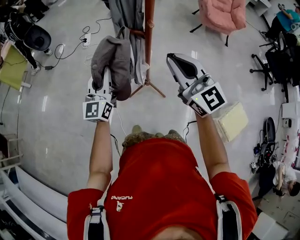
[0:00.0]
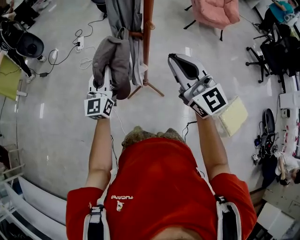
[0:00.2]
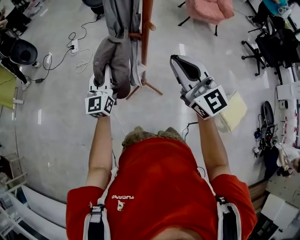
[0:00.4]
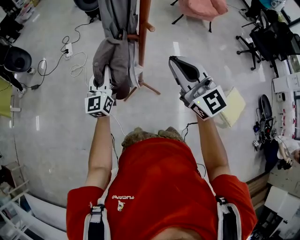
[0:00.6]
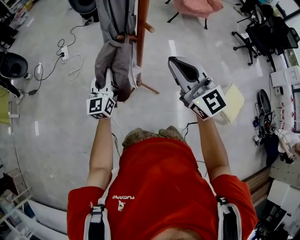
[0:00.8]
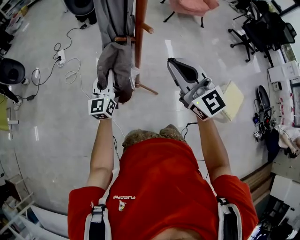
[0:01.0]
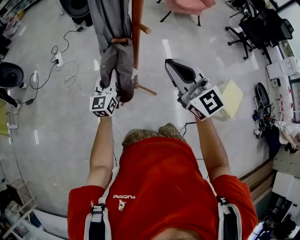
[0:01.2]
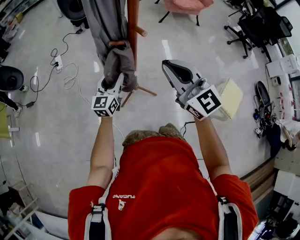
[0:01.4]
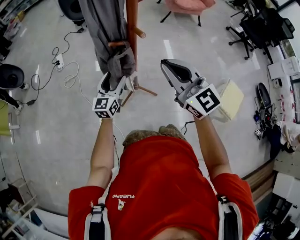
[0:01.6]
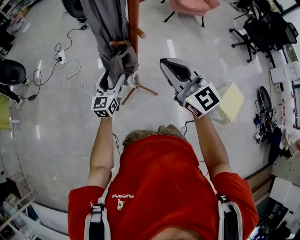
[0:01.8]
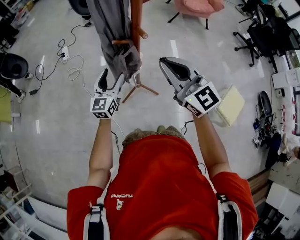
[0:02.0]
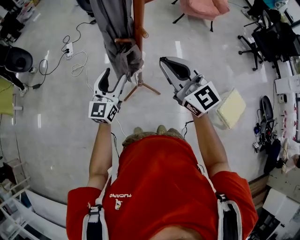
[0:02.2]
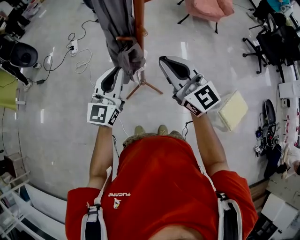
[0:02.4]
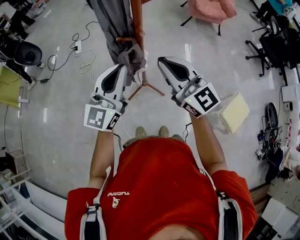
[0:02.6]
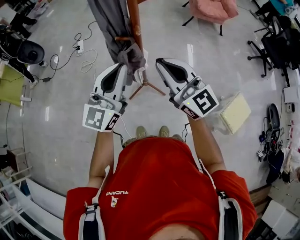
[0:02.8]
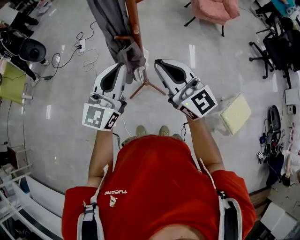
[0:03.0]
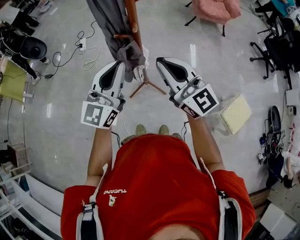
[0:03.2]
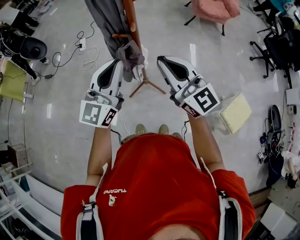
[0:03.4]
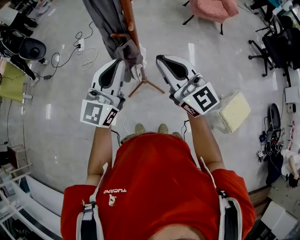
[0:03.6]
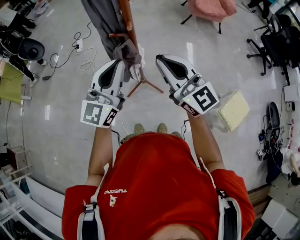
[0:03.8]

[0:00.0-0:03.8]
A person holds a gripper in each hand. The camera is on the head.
0:00.0 to 0:01.2: The right gripper ends up some 5 cm from where it was; the left gripper is displaced downward, forward and to the right by roughly 20 cm, and swivels approximately 20 degrees.
0:01.2 to 0:02.6: The left gripper is displaced upward and backward by roughly 25 cm, and opens, then closes once more.
0:02.6 to 0:03.8: The grippers stay close to where they were, moving slightly.

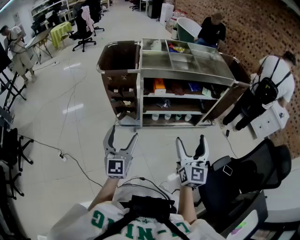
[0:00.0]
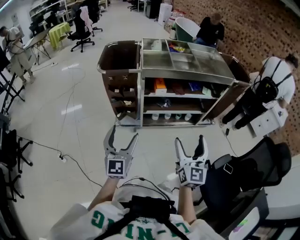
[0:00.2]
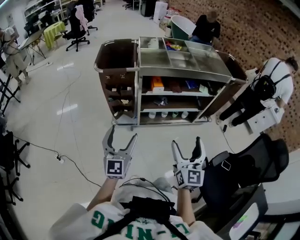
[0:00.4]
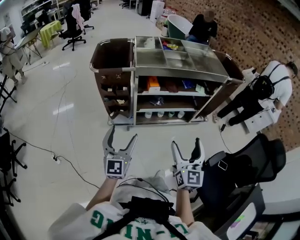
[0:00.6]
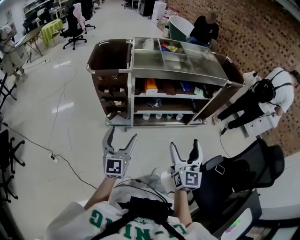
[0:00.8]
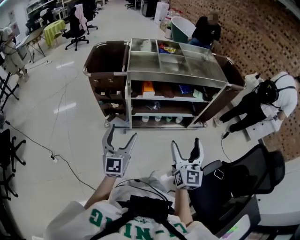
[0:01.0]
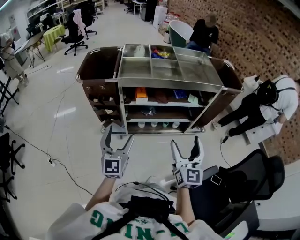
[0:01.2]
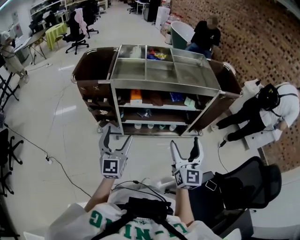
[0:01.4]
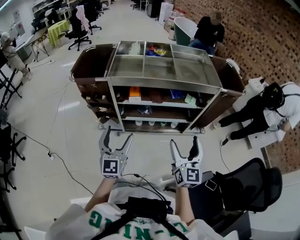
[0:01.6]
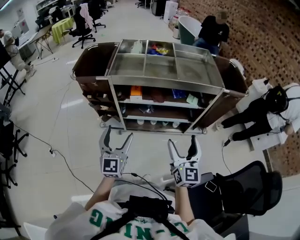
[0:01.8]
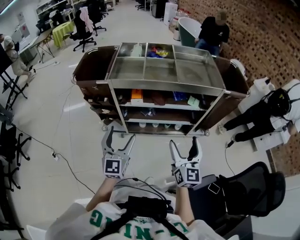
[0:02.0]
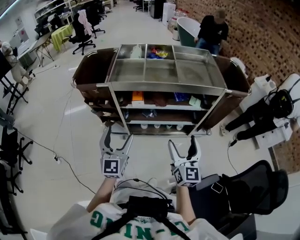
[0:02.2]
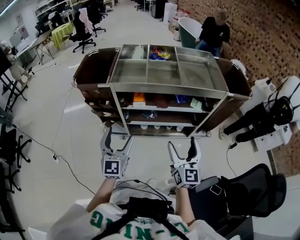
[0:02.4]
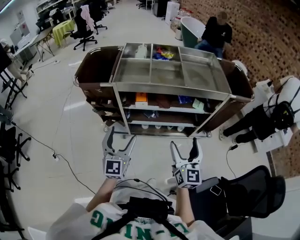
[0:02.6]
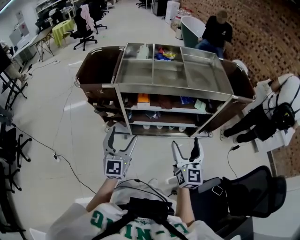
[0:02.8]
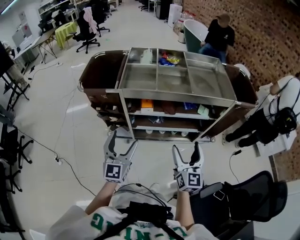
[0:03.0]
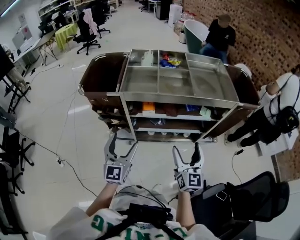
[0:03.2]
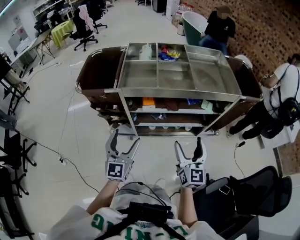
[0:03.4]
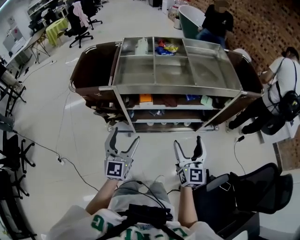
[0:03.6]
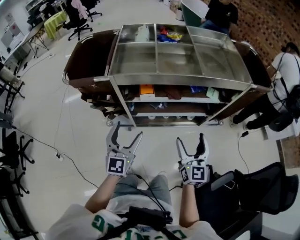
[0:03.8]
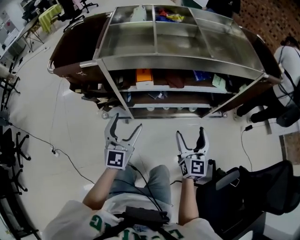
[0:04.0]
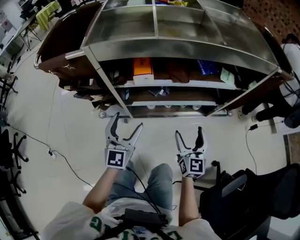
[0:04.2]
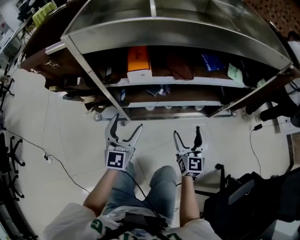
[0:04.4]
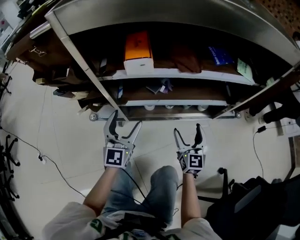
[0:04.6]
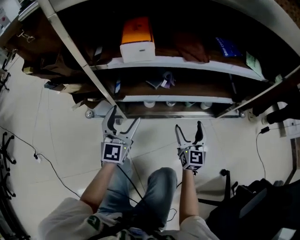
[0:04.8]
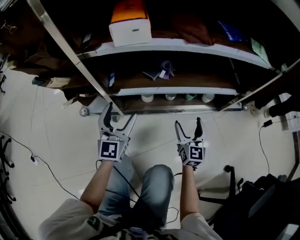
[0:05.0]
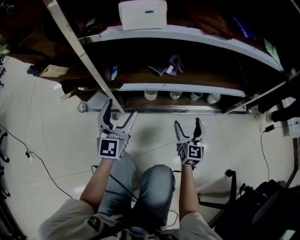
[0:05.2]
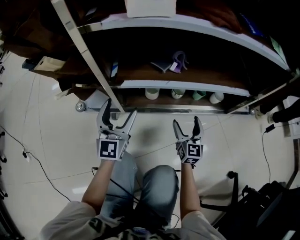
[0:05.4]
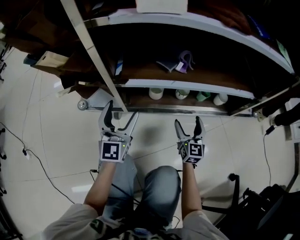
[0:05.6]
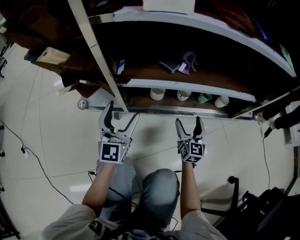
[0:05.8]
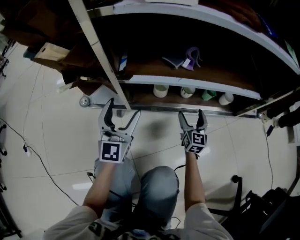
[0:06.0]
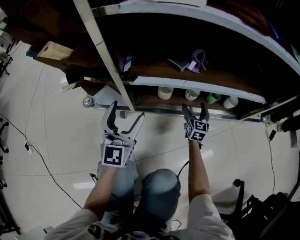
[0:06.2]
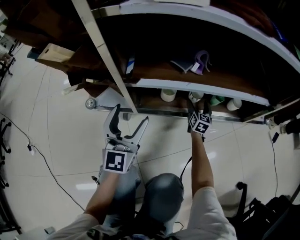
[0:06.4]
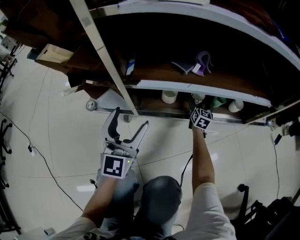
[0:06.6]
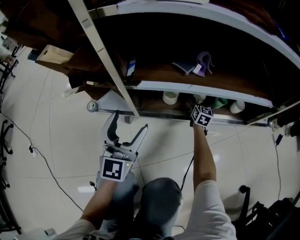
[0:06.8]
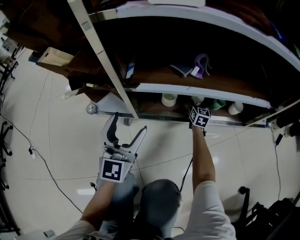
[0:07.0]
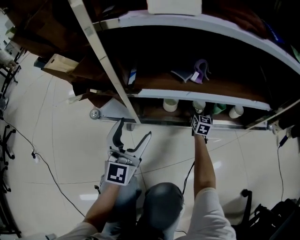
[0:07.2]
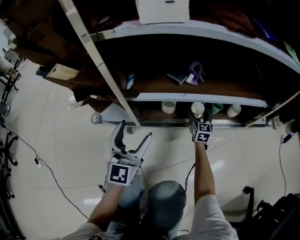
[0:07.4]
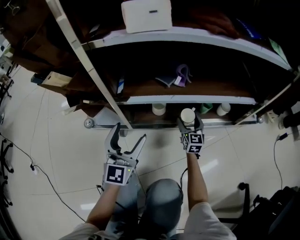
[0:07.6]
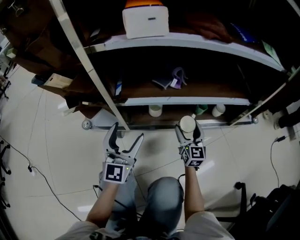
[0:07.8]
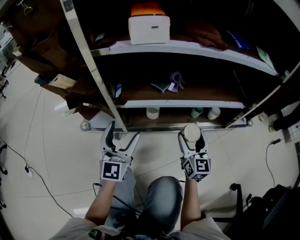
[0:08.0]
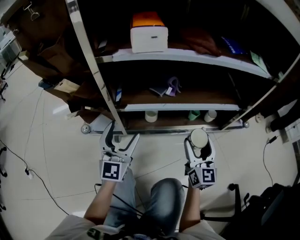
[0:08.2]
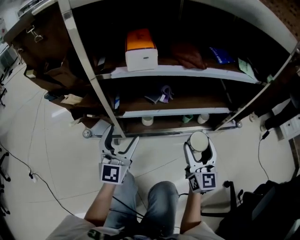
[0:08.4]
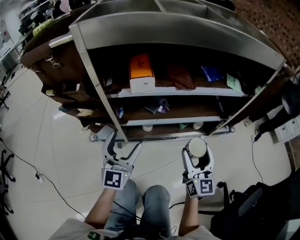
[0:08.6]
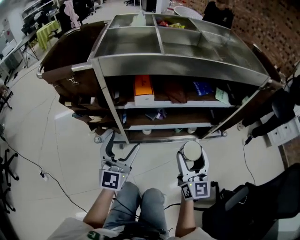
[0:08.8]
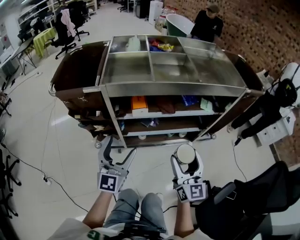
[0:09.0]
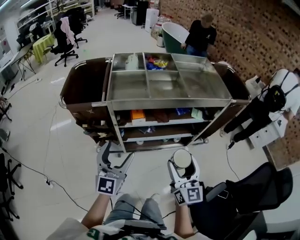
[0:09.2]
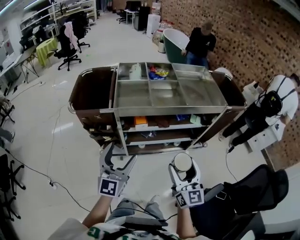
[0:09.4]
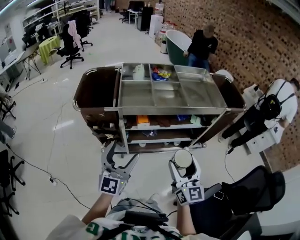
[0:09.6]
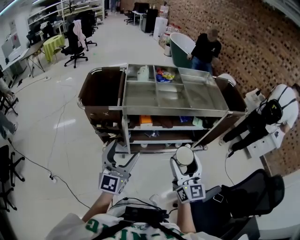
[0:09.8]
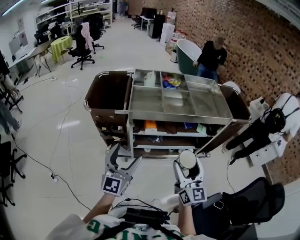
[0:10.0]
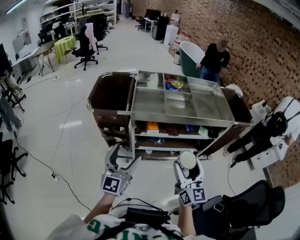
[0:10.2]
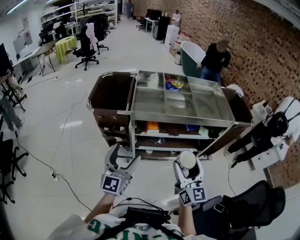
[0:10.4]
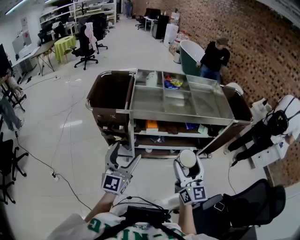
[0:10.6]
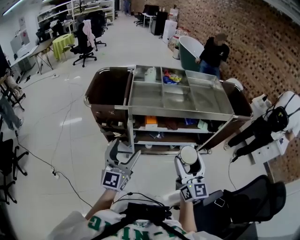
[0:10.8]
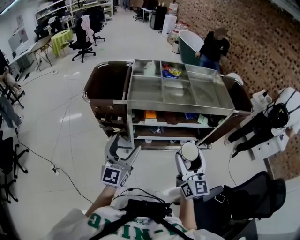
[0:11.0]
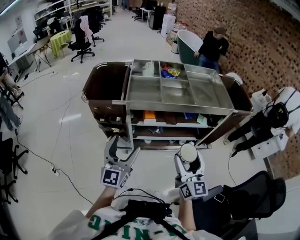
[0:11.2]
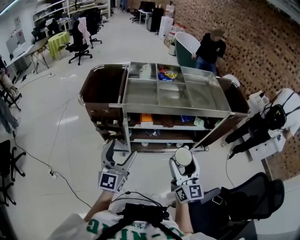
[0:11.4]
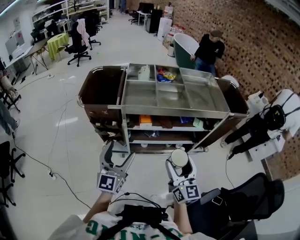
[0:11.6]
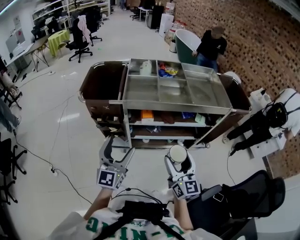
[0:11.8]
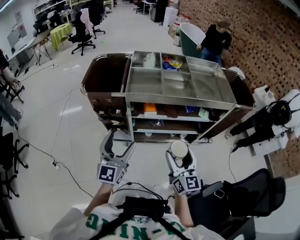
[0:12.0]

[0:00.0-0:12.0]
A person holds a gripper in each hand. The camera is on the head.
0:00.0 to 0:01.6: Both grippers travel together to the right and forward, roughly 20 cm.
0:01.6 to 0:03.0: The left gripper travels forward by about 5 cm; the right gripper shifts some 10 cm forward and to the left.
0:03.0 to 0:04.4: The left gripper moves downward and forward, some 40 cm. Meanwhile the right gripper goes some 40 cm downward.
0:04.4 to 0:06.0: Both grippers travel together downward, about 35 cm.
0:06.0 to 0:07.6: The right gripper travels forward and back again, approximately 15 cm each way.
0:07.6 to 0:09.0: The left gripper goes roughly 50 cm upward, while the right gripper is displaced upward and backward by about 70 cm.
0:09.0 to 0:10.4: The right gripper heads upward, covering some 20 cm, while the left gripper moves upward and backward, approximately 20 cm.
0:10.4 to 0:12.0: The right gripper moves downward, approximately 5 cm.

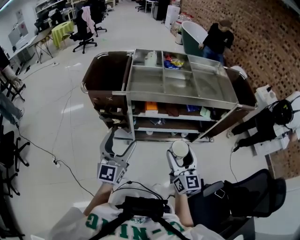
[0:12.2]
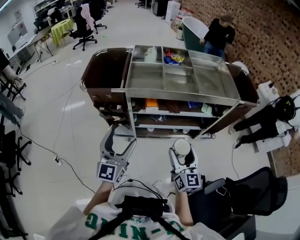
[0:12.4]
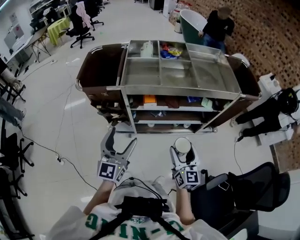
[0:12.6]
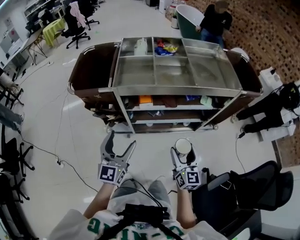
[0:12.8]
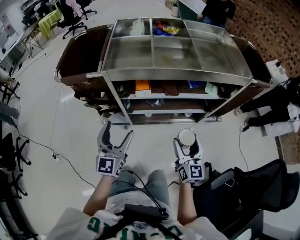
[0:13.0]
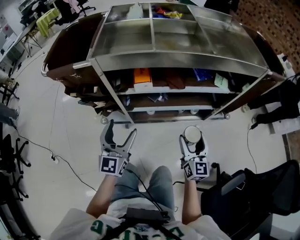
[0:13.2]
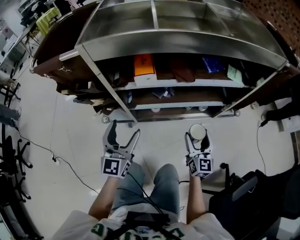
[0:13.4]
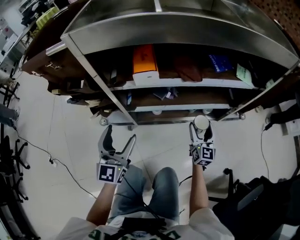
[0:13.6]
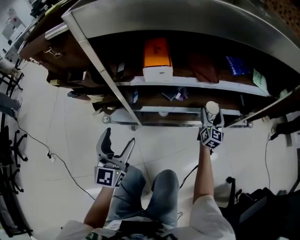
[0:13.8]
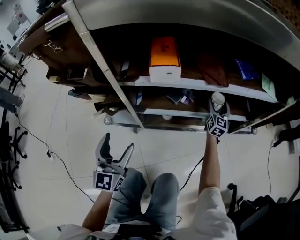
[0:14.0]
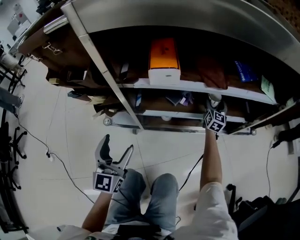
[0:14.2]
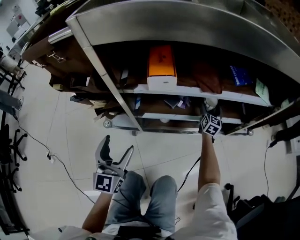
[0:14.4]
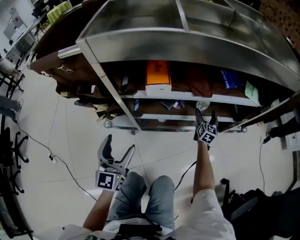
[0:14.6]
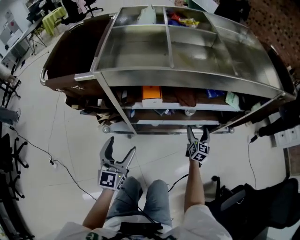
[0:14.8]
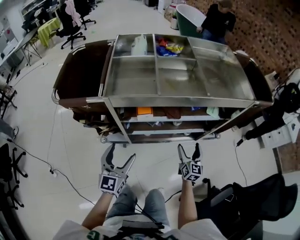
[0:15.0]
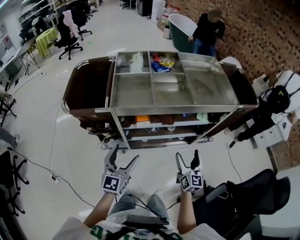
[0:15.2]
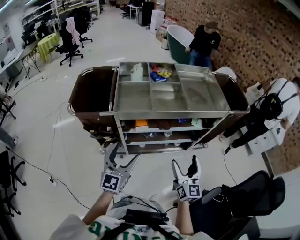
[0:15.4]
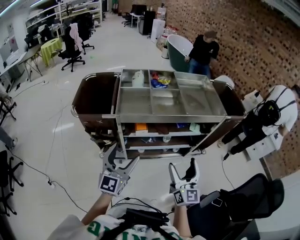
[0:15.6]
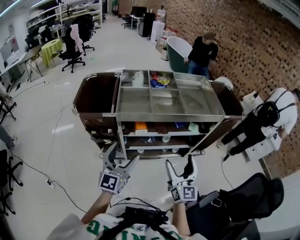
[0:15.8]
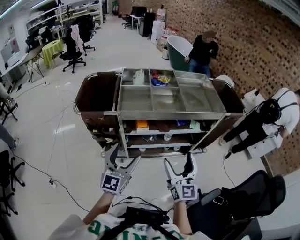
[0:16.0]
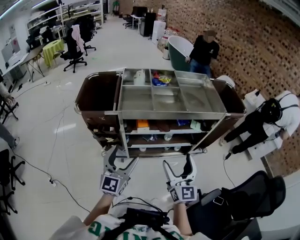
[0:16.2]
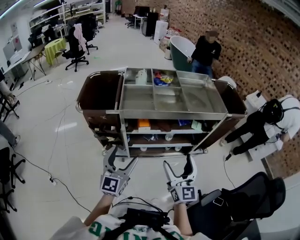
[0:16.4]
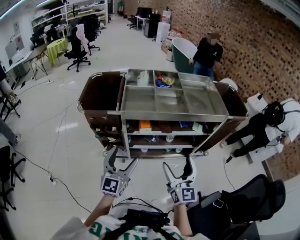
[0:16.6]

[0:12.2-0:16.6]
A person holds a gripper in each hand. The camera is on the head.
0:12.2 to 0:13.6: The left gripper moves downward, roughly 40 cm; the right gripper is displaced downward and forward by about 50 cm.
0:13.6 to 0:15.2: Both grippers travel together upward, about 30 cm.
0:15.2 to 0:16.6: The right gripper is displaced upward, backward and to the left by roughly 25 cm; the left gripper moves upward and backward, about 15 cm.

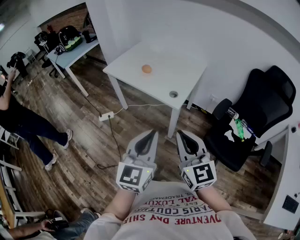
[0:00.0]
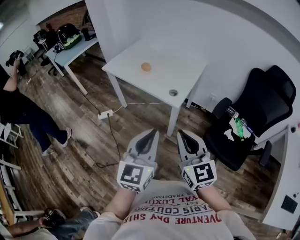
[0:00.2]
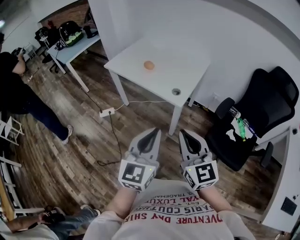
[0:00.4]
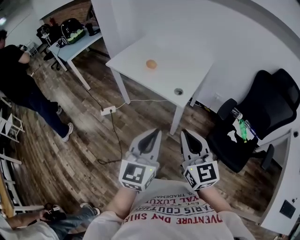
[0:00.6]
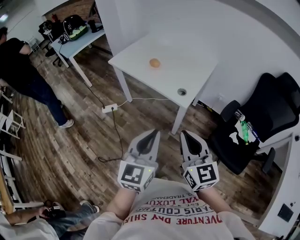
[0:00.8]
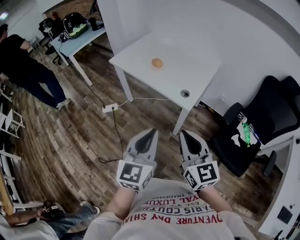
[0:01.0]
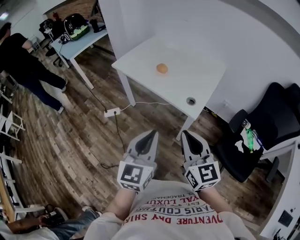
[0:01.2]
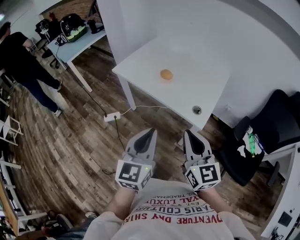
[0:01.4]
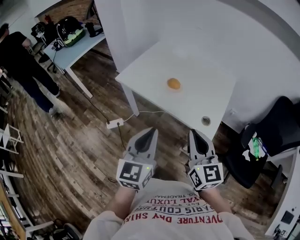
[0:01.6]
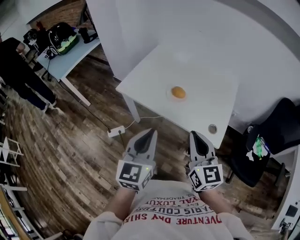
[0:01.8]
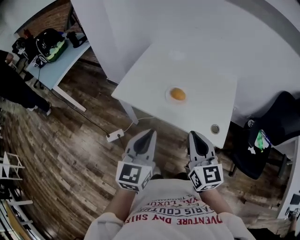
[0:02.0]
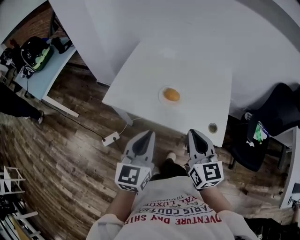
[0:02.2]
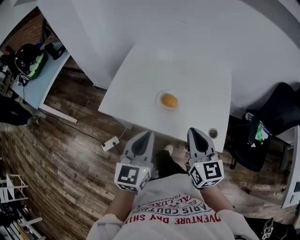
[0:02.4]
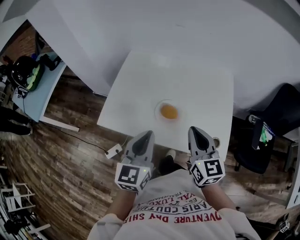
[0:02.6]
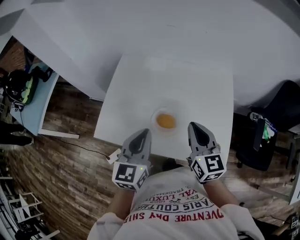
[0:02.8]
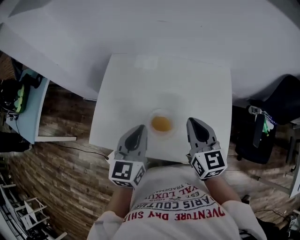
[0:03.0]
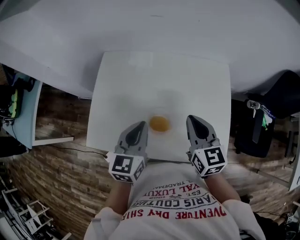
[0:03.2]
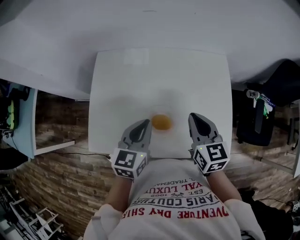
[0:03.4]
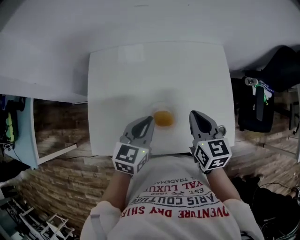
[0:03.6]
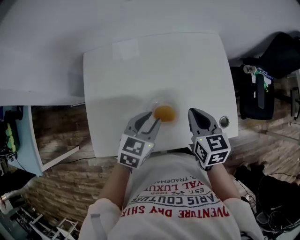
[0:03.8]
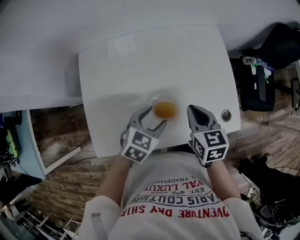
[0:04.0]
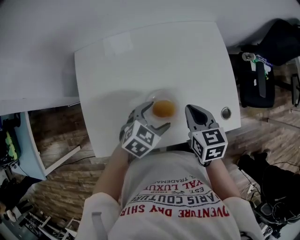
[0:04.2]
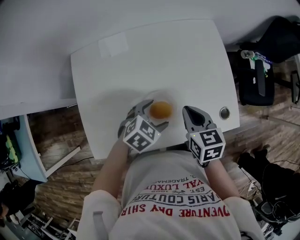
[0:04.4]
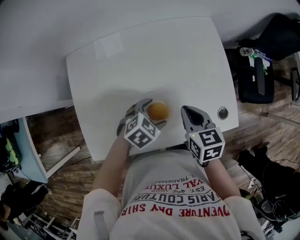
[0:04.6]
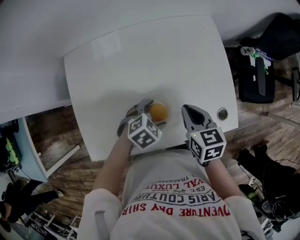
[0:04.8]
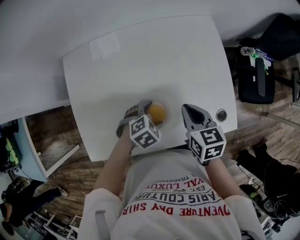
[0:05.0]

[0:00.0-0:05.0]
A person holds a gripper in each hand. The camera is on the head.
0:00.0 to 0:01.6: The two grippers go roughly 30 cm forward and to the left.
0:01.6 to 0:03.4: The left gripper changes place by roughly 50 cm, and changes its angle by approximately 40 degrees, while the right gripper moves approximately 40 cm, and rotates some 40 degrees.
0:03.4 to 0:05.0: The right gripper moves downward, some 10 cm, and turns by roughly 20 degrees. The left gripper goes approximately 20 cm downward, tips its fingers downward by approximately 40 degrees, and opens up.
